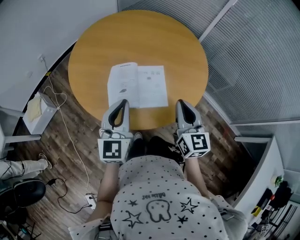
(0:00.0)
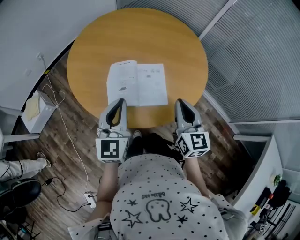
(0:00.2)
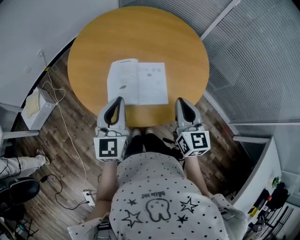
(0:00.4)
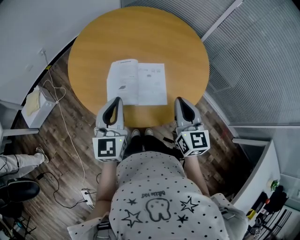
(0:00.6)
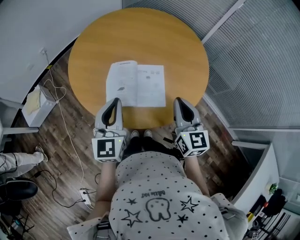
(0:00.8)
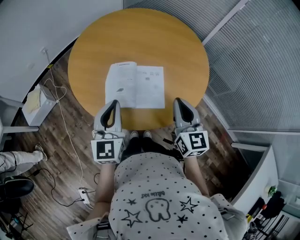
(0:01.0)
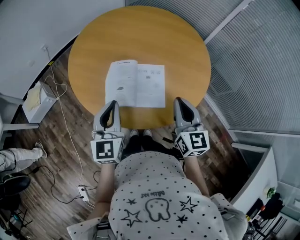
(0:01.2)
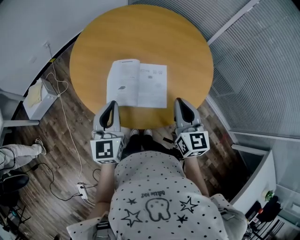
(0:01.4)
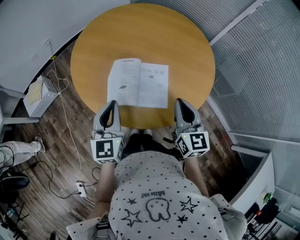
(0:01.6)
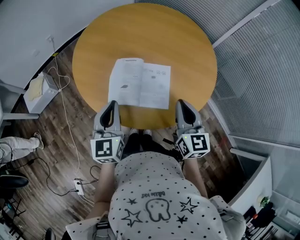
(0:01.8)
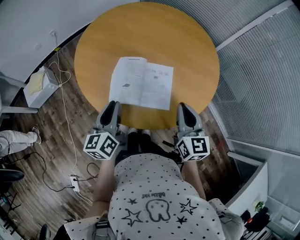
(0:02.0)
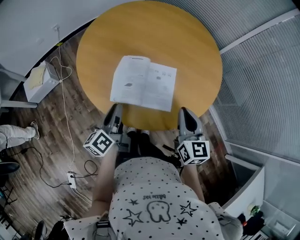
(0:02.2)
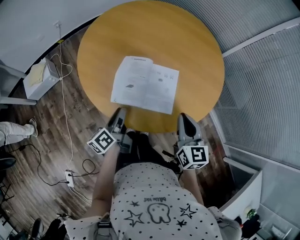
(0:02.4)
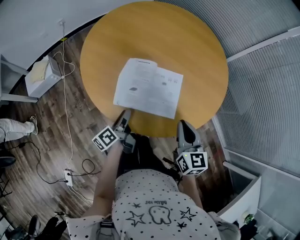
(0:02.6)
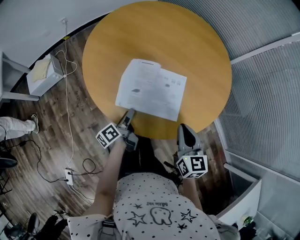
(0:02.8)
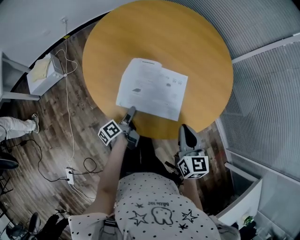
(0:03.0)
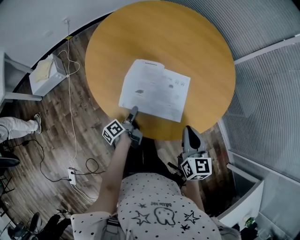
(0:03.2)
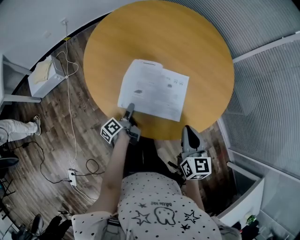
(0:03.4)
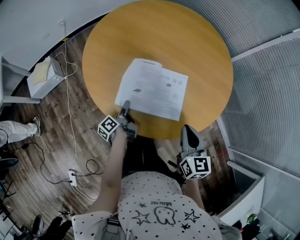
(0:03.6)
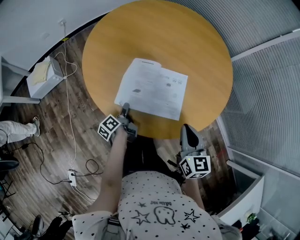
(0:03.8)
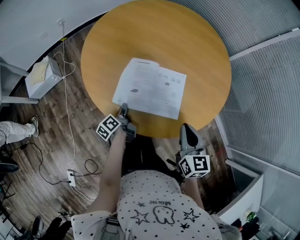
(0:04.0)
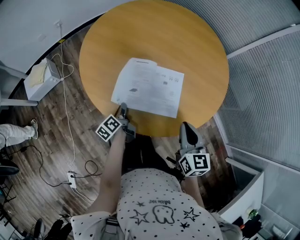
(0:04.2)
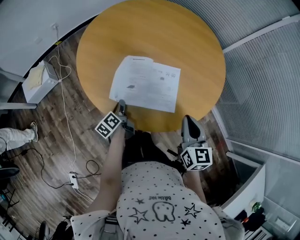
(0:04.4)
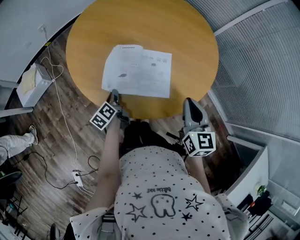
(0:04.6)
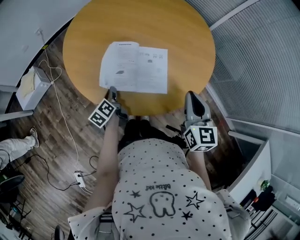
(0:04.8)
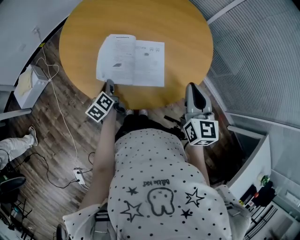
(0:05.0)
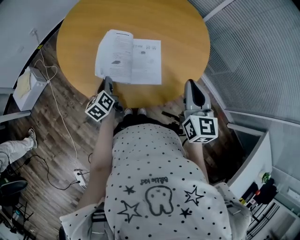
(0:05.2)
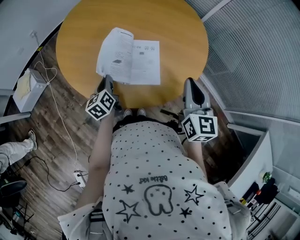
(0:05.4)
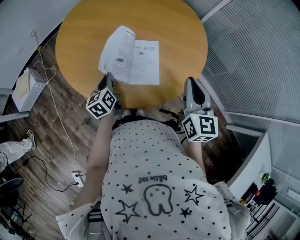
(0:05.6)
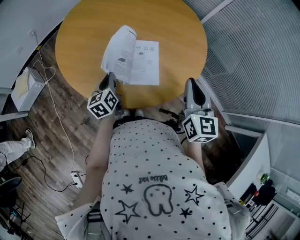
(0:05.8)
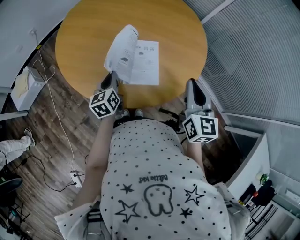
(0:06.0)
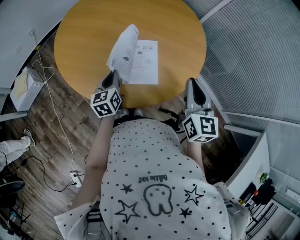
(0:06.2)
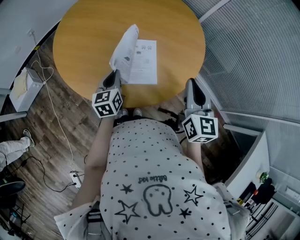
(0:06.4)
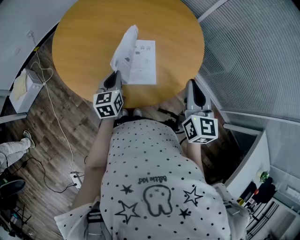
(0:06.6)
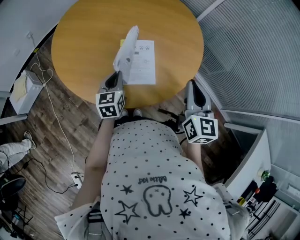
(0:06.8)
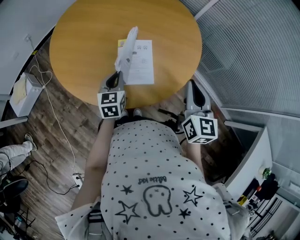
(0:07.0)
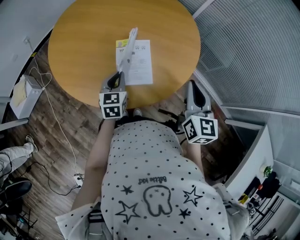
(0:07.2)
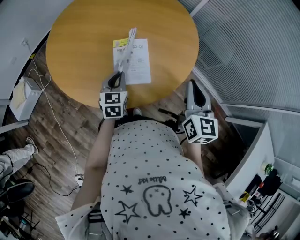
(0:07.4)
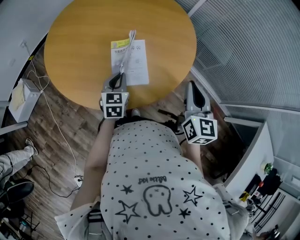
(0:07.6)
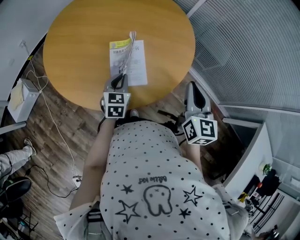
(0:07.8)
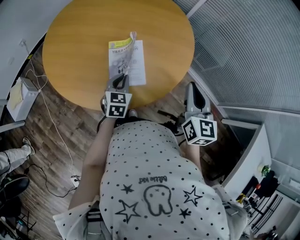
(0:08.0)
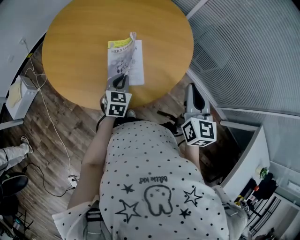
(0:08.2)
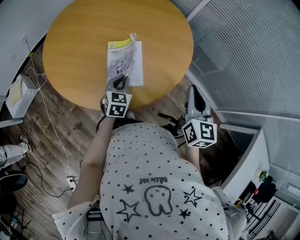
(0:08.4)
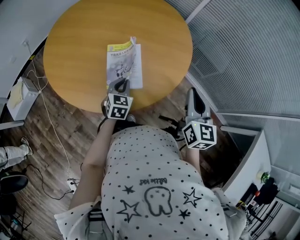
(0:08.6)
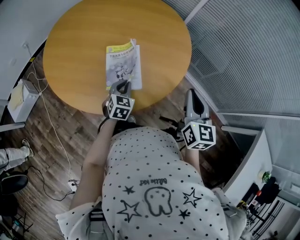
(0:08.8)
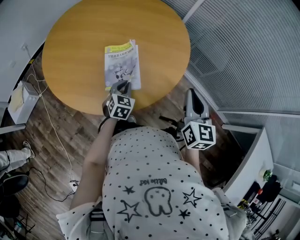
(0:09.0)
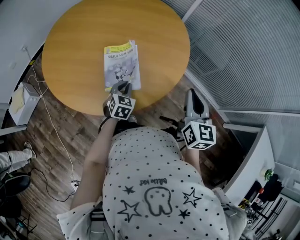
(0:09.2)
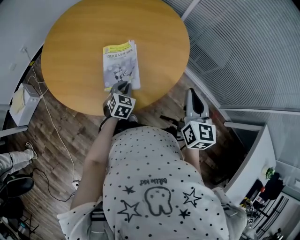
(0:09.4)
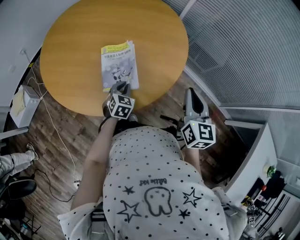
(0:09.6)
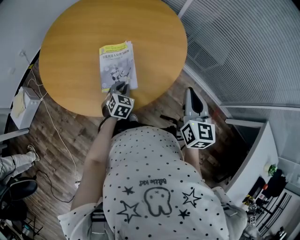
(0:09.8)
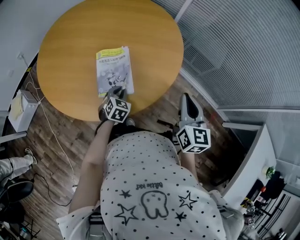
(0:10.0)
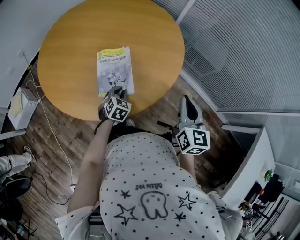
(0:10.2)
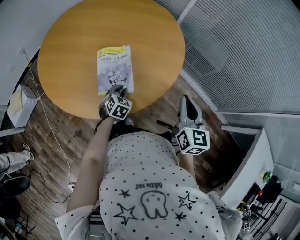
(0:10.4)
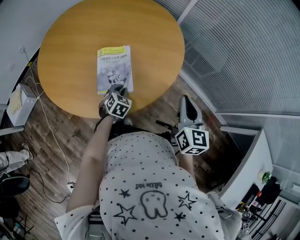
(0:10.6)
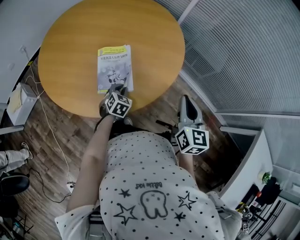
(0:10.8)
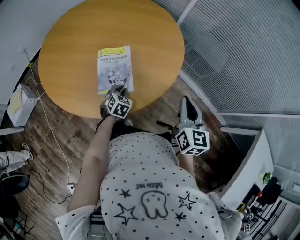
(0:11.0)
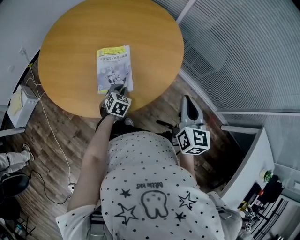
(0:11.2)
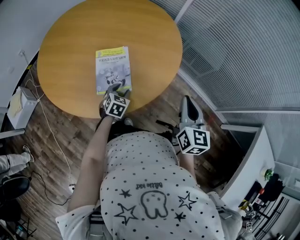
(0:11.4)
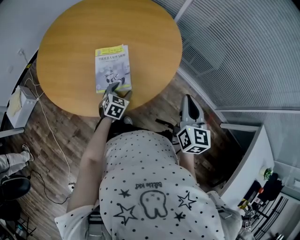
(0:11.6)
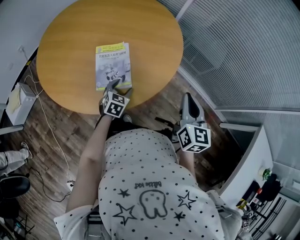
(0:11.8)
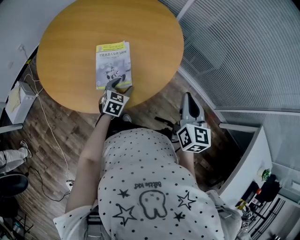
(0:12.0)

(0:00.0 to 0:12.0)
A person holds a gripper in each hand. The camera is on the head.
0:00.0 - 0:01.6: The grippers make only small movements.
0:01.6 - 0:03.0: The left gripper moves downward, about 25 cm, twists some 80 degrees counterclockwise, seen from behind, and opens up; the right gripper shifts about 10 cm downward.
0:03.0 - 0:04.4: The left gripper swivels roughly 20 degrees, and closes.
0:04.4 - 0:06.0: The right gripper shifts some 10 cm to the right and upward; the left gripper moves upward and to the right, approximately 10 cm, and rotates roughly 40 degrees.
0:06.0 - 0:07.6: The right gripper goes roughly 5 cm to the right; the left gripper is displaced to the right by approximately 10 cm, and rotates about 30 degrees.
0:07.6 - 0:09.0: The right gripper travels to the right by roughly 5 cm. Meanwhile the left gripper moves to the right and downward, some 10 cm.
0:09.0 - 0:10.4: The left gripper shifts by some 5 cm.
0:10.4 - 0:12.0: The left gripper opens its fingers.

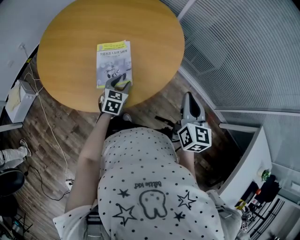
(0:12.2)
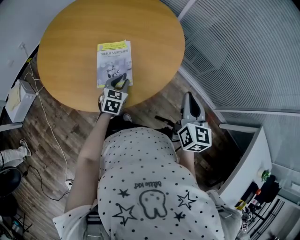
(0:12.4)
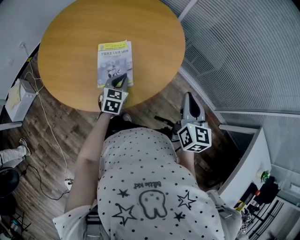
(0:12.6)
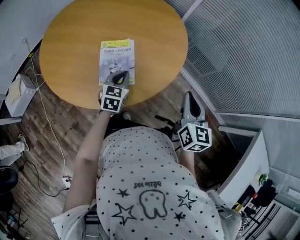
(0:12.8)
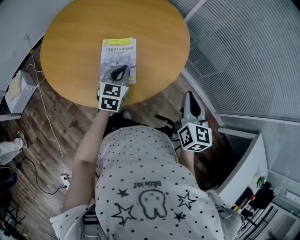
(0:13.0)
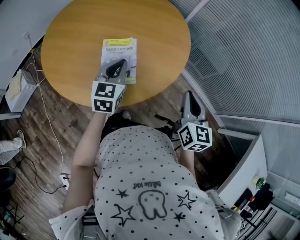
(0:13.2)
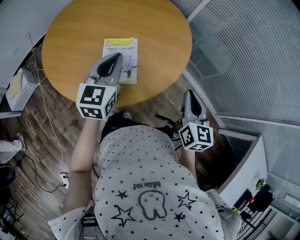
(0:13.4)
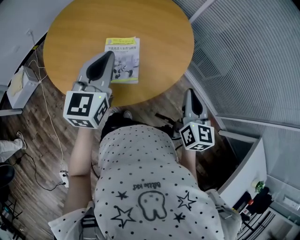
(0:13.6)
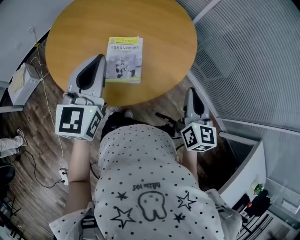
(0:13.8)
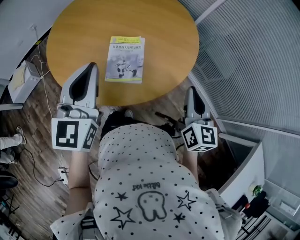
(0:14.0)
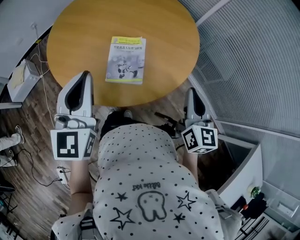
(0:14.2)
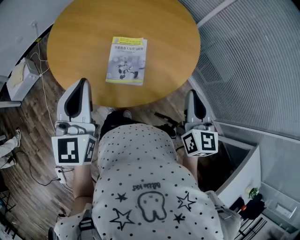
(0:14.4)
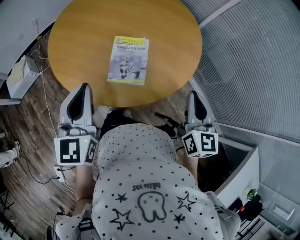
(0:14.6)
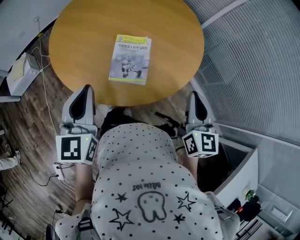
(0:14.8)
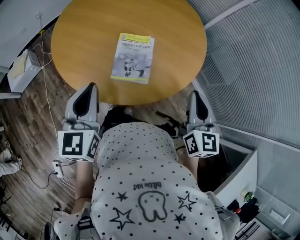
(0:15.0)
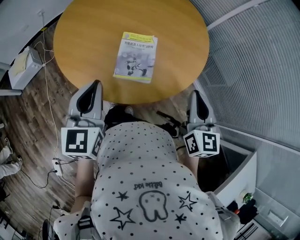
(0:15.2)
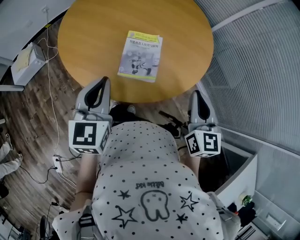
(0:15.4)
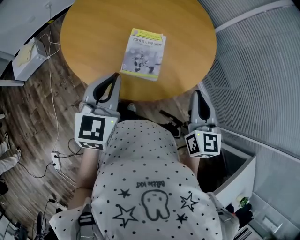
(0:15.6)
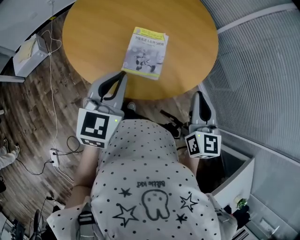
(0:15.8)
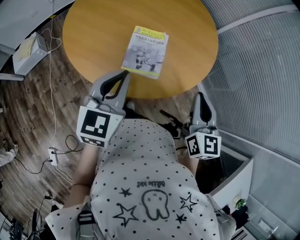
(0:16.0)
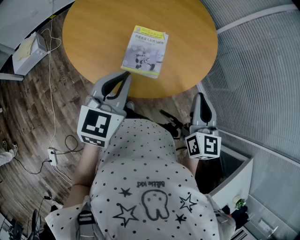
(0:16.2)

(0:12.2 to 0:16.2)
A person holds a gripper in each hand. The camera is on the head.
0:12.2 - 0:13.6: The left gripper travels upward by roughly 25 cm, tips its fingers upward by approximately 30 degrees, and closes up.
0:13.6 - 0:14.8: The right gripper changes place by approximately 5 cm. The left gripper heads to the left and backward, covering about 15 cm.
0:14.8 - 0:16.2: The left gripper goes roughly 5 cm to the right.

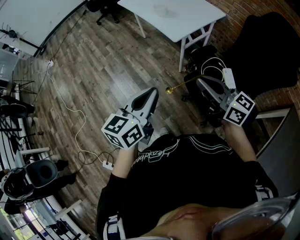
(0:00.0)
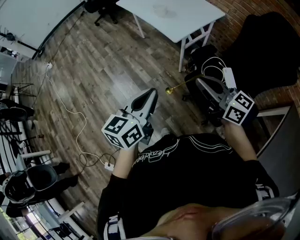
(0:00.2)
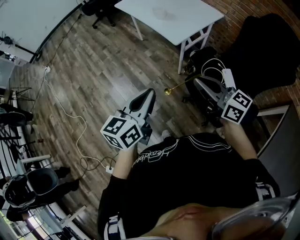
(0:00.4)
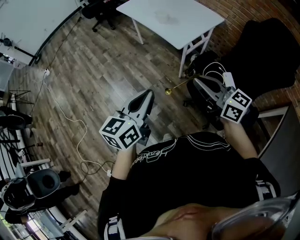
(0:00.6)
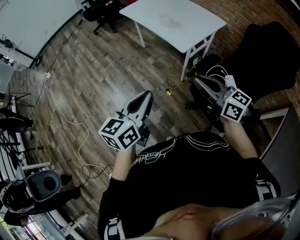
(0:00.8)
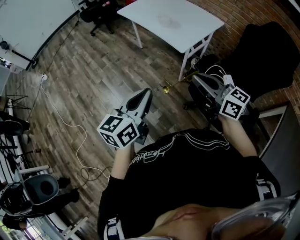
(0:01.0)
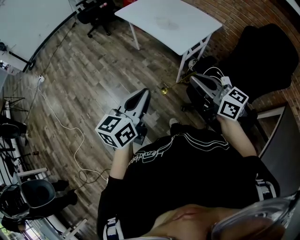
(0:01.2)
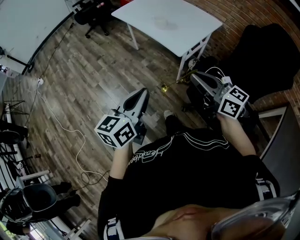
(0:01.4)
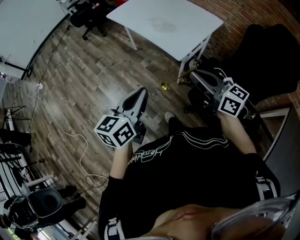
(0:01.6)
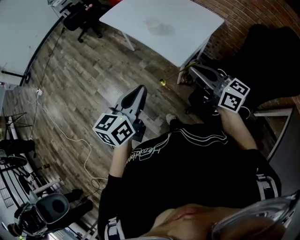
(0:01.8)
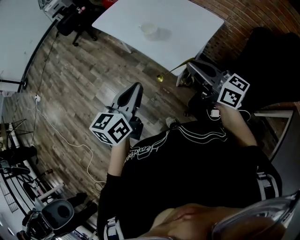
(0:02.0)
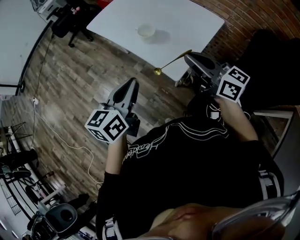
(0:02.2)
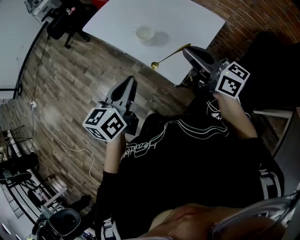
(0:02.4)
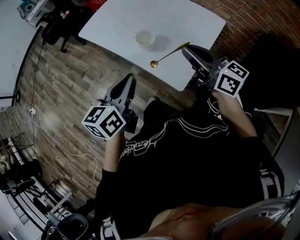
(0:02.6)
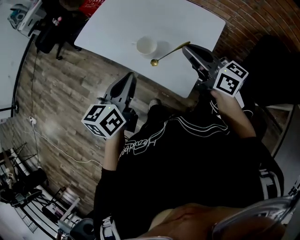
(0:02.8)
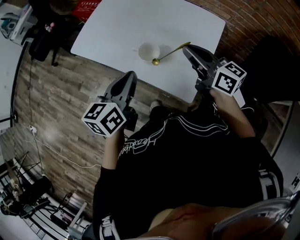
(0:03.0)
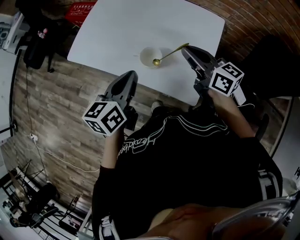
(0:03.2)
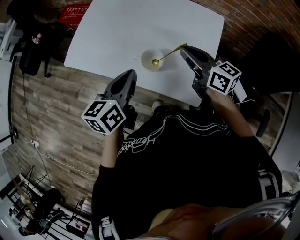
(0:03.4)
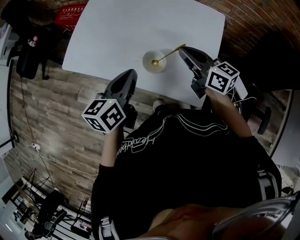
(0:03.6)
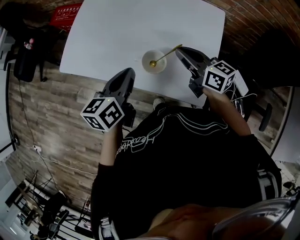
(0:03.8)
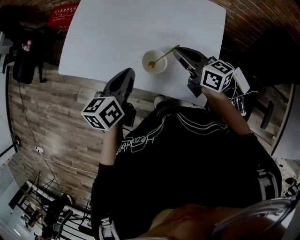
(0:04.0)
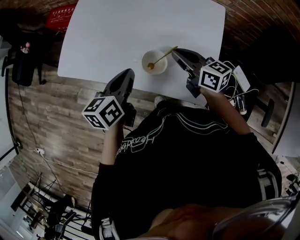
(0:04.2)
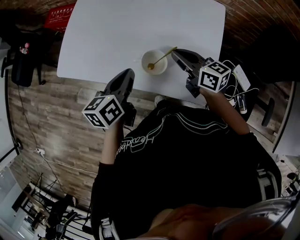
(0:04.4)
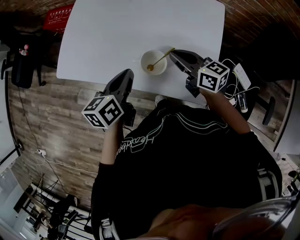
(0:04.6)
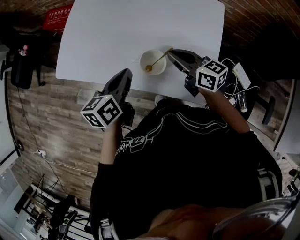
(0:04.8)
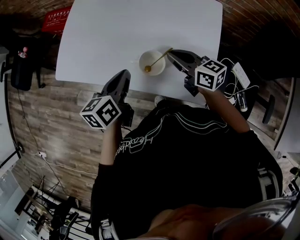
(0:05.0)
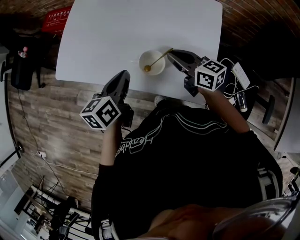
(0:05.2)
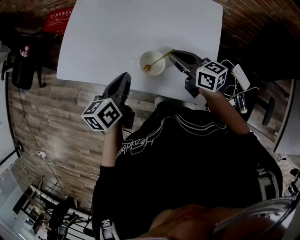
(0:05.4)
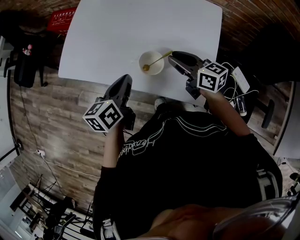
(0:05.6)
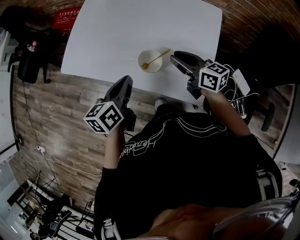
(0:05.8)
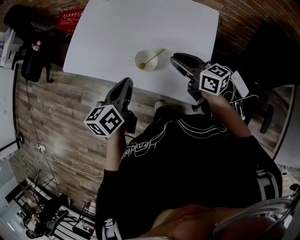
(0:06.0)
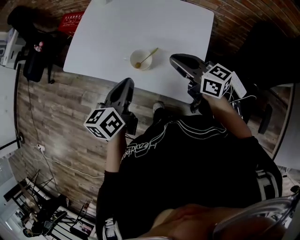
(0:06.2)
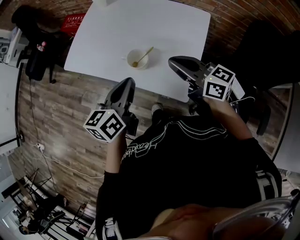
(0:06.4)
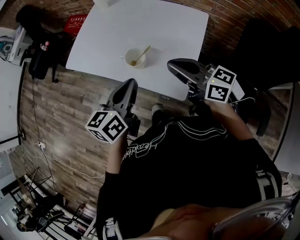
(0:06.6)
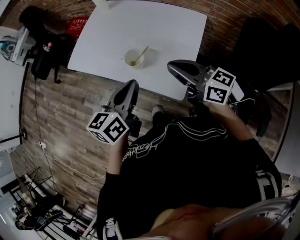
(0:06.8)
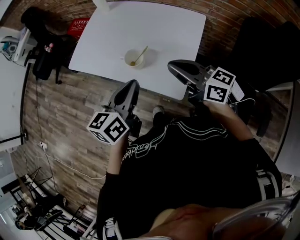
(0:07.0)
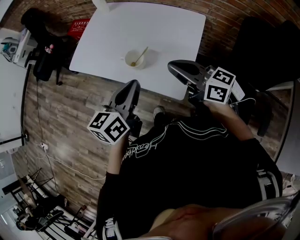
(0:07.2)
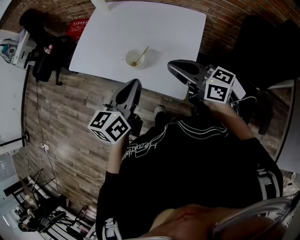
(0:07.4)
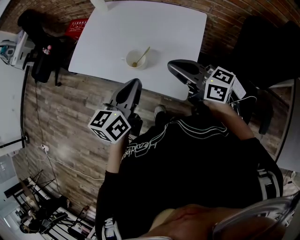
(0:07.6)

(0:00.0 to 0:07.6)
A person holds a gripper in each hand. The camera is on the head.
0:00.0 - 0:01.6: The right gripper moves forward, some 20 cm. The left gripper goes approximately 20 cm forward and to the left.
0:01.6 - 0:03.0: Both grippers are carried forward, roughly 40 cm. The right gripper rotates approximately 20 degrees.
0:03.0 - 0:04.6: The left gripper shifts roughly 15 cm forward and downward. Meanwhile the right gripper travels downward and forward by about 15 cm.
0:04.6 - 0:06.0: The left gripper travels backward by about 5 cm. The right gripper ends up approximately 10 cm from where it was.
0:06.0 - 0:07.6: The left gripper goes some 15 cm backward, upward and to the right. Meanwhile the right gripper is displaced upward and backward by roughly 15 cm.
